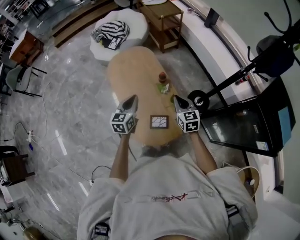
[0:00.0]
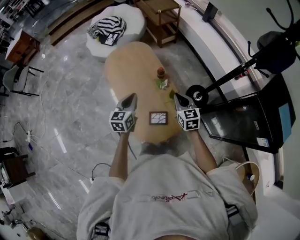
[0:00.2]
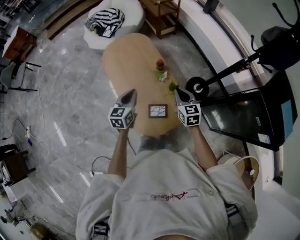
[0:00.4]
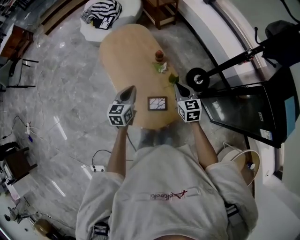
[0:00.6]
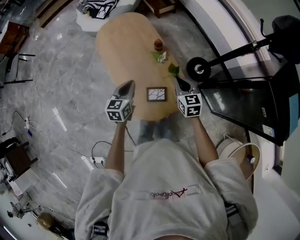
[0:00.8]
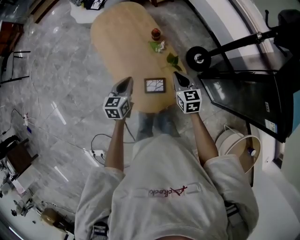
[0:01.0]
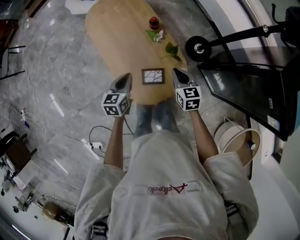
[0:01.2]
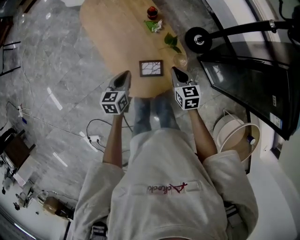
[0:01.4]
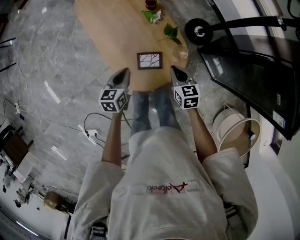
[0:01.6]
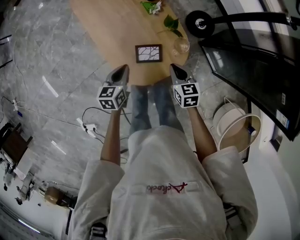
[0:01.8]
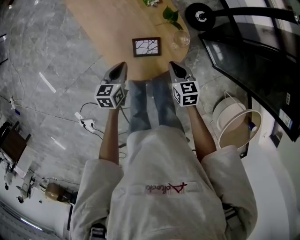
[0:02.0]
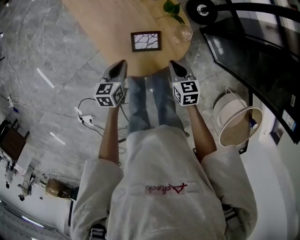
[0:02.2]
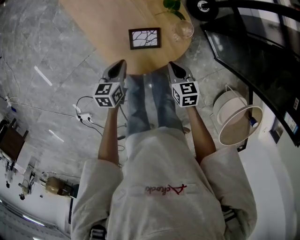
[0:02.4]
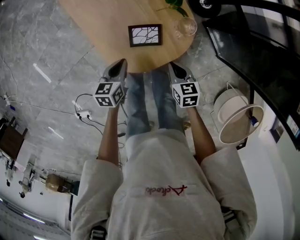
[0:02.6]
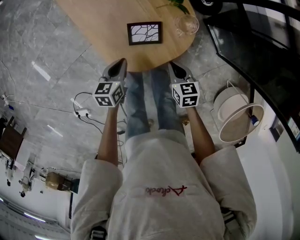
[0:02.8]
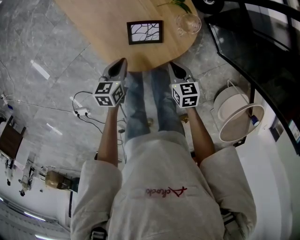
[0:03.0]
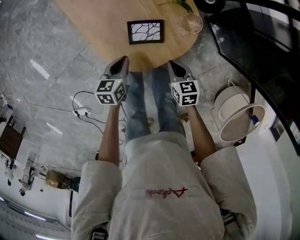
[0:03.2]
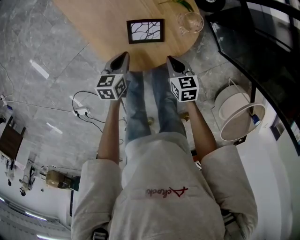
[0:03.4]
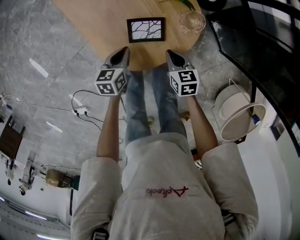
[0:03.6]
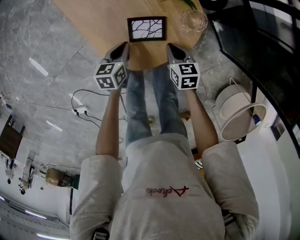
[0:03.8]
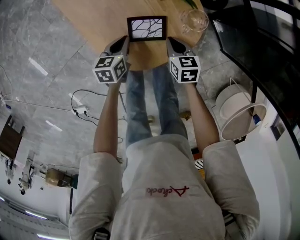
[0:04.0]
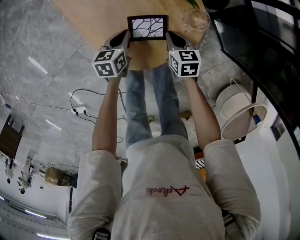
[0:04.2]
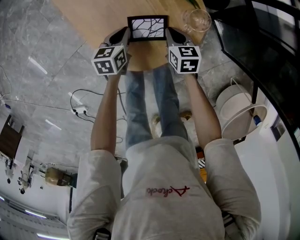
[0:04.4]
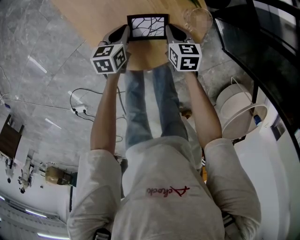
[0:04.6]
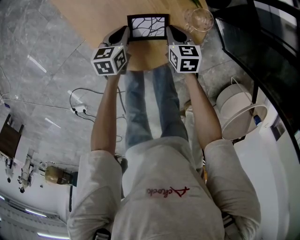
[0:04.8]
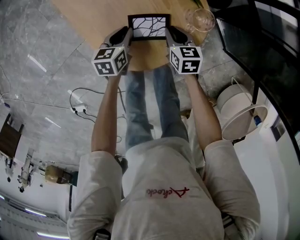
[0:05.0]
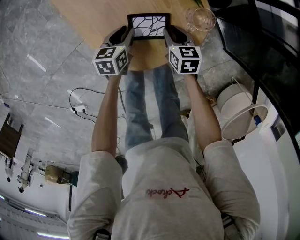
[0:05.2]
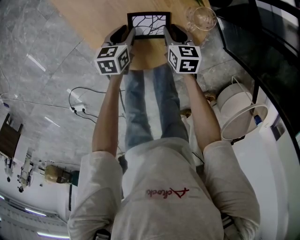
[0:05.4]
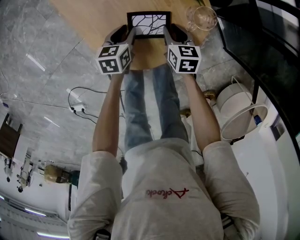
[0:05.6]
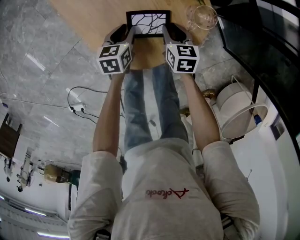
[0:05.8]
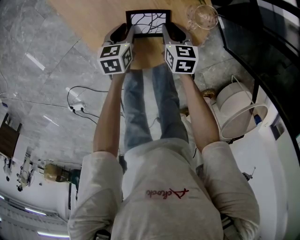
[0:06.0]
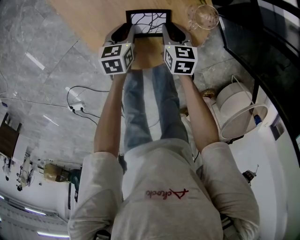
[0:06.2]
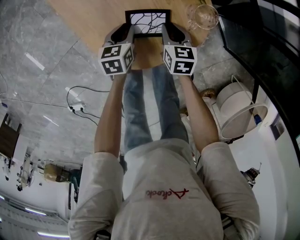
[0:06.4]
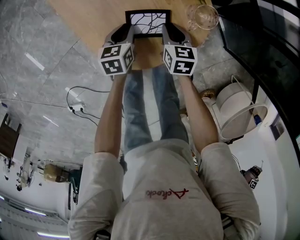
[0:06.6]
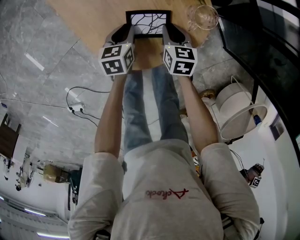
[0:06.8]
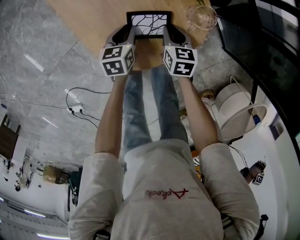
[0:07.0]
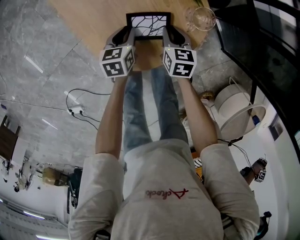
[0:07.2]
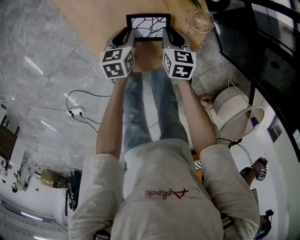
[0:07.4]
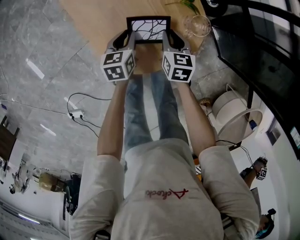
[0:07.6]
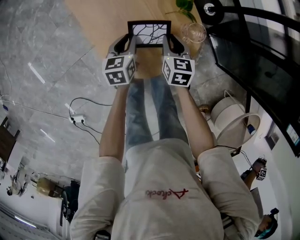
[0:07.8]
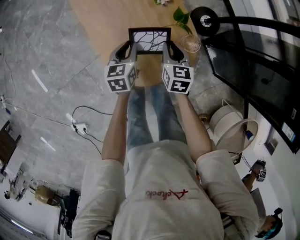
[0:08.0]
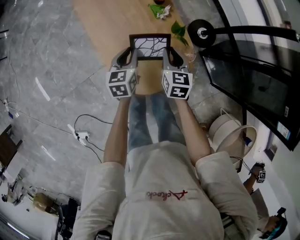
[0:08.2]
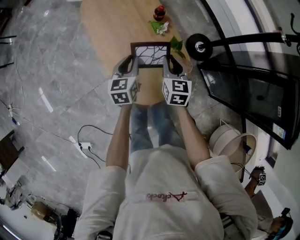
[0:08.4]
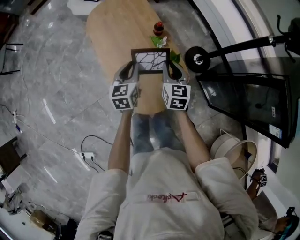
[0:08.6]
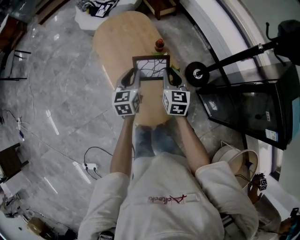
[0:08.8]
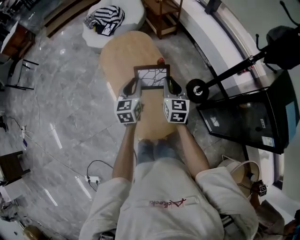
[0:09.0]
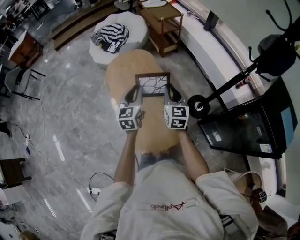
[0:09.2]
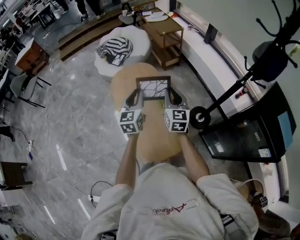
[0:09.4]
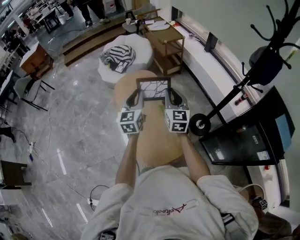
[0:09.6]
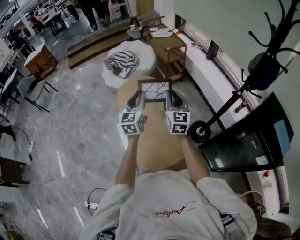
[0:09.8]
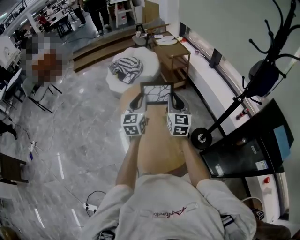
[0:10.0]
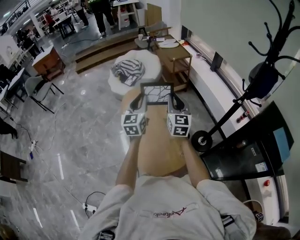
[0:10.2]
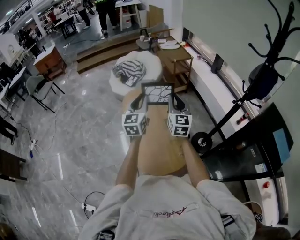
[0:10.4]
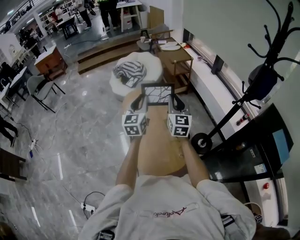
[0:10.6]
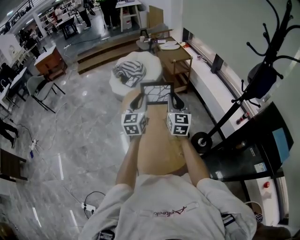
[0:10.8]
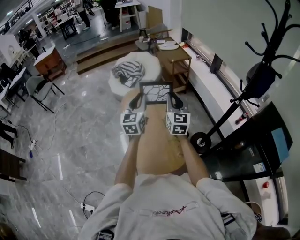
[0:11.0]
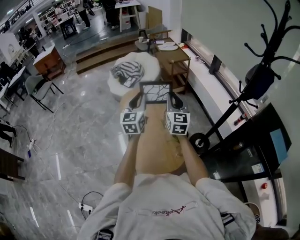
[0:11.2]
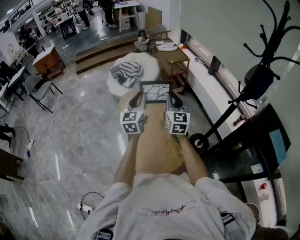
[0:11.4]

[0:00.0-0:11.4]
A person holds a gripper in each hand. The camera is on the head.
0:00.0 to 0:01.4: The grippers both shift downward by roughly 20 cm.
0:01.4 to 0:02.8: The left gripper is displaced downward by roughly 20 cm; the right gripper goes roughly 25 cm downward and backward.
0:02.8 to 0:04.2: The left gripper moves downward and forward, about 10 cm. Meanwhile the right gripper travels forward and downward by roughly 15 cm.
0:04.2 to 0:05.6: The left gripper opens up; the right gripper opens up.
0:05.6 to 0:07.2: The grippers make only small movements.
0:07.2 to 0:08.6: The grippers both shift upward by some 40 cm. The left gripper turns by roughly 30 degrees. Meanwhile the right gripper turns by about 30 degrees.
0:08.6 to 0:10.0: The grippers both shift upward by roughly 35 cm. The right gripper changes its angle by approximately 30 degrees. The left gripper swivels approximately 30 degrees.
0:10.0 to 0:11.4: The grippers move only a little.

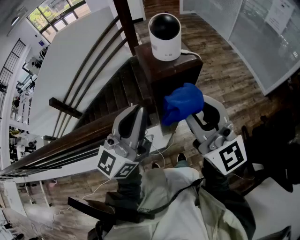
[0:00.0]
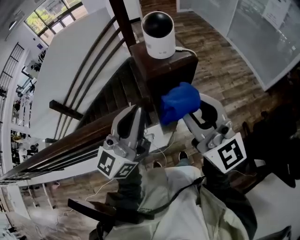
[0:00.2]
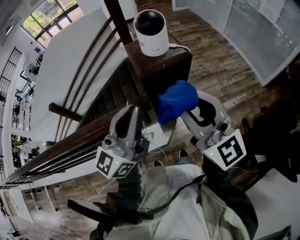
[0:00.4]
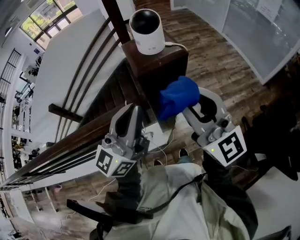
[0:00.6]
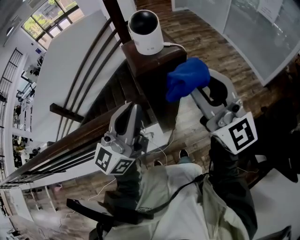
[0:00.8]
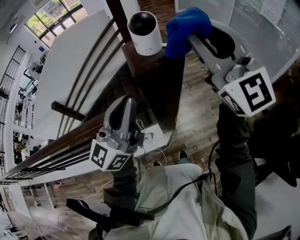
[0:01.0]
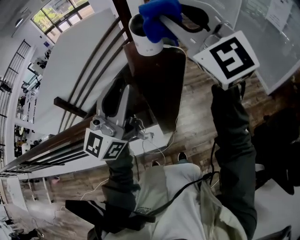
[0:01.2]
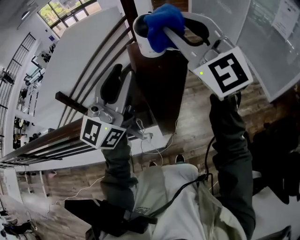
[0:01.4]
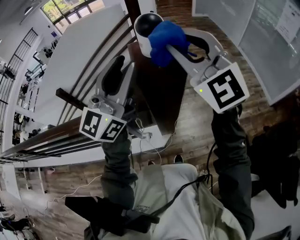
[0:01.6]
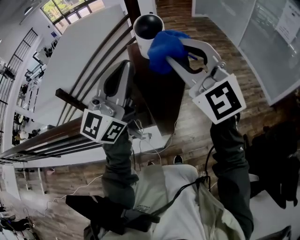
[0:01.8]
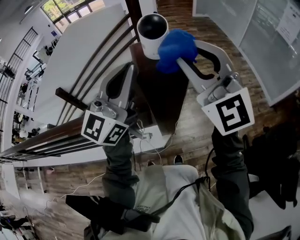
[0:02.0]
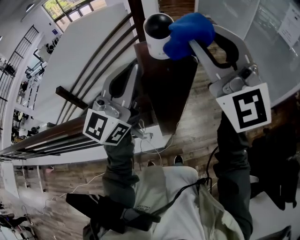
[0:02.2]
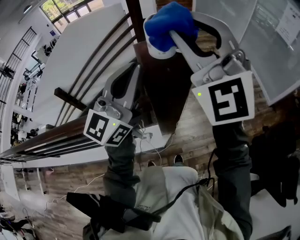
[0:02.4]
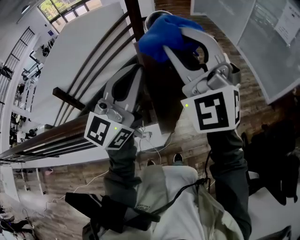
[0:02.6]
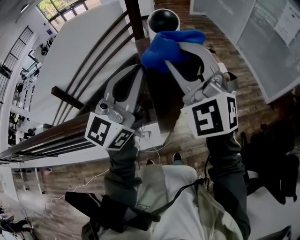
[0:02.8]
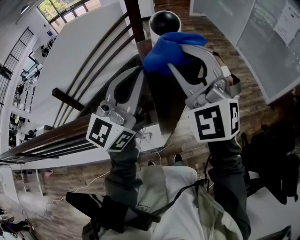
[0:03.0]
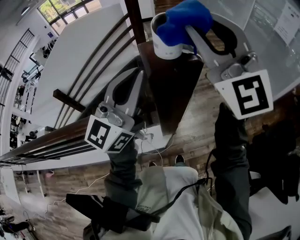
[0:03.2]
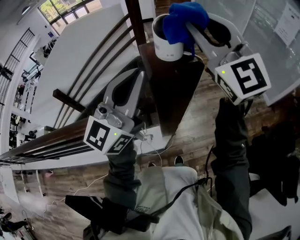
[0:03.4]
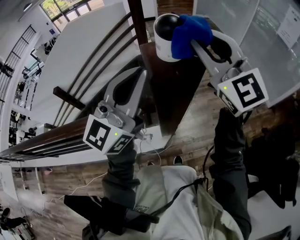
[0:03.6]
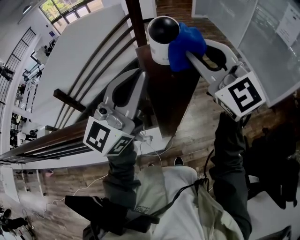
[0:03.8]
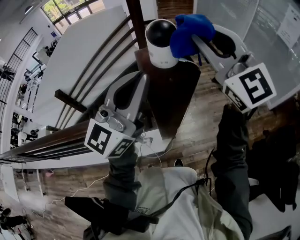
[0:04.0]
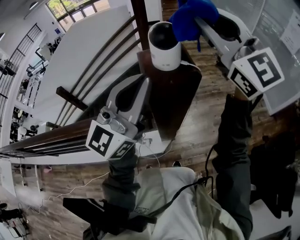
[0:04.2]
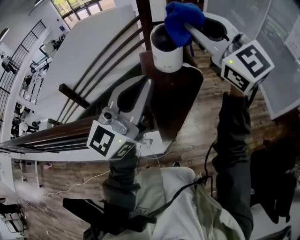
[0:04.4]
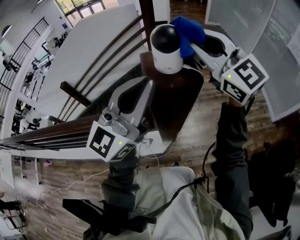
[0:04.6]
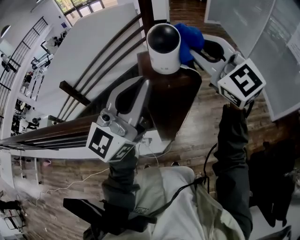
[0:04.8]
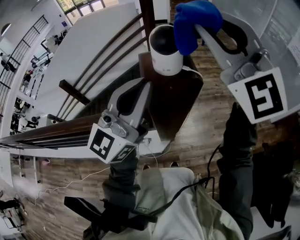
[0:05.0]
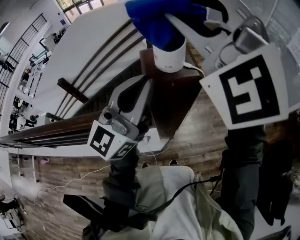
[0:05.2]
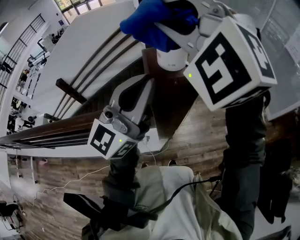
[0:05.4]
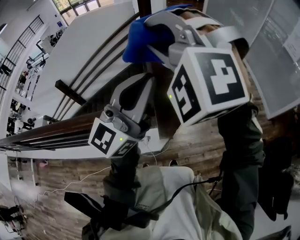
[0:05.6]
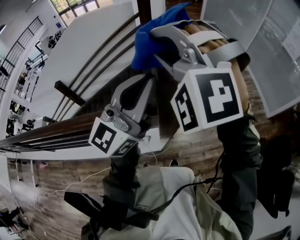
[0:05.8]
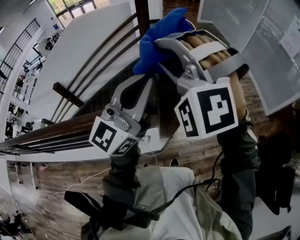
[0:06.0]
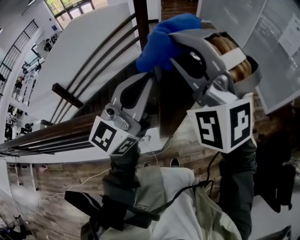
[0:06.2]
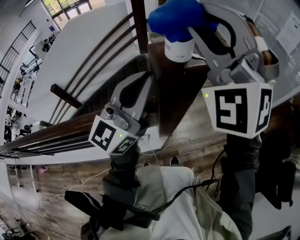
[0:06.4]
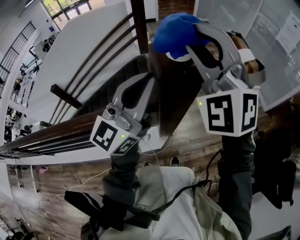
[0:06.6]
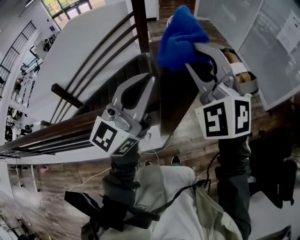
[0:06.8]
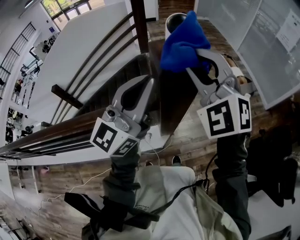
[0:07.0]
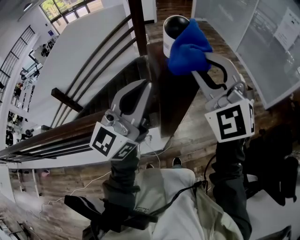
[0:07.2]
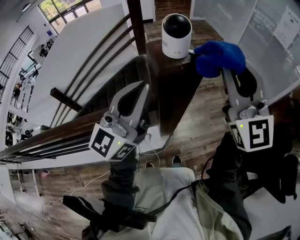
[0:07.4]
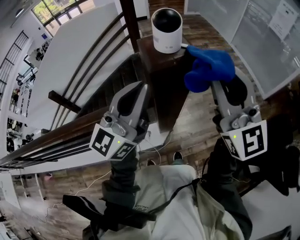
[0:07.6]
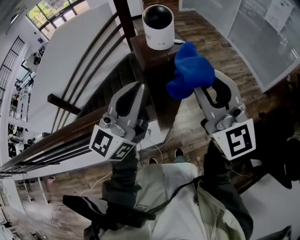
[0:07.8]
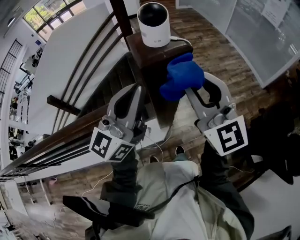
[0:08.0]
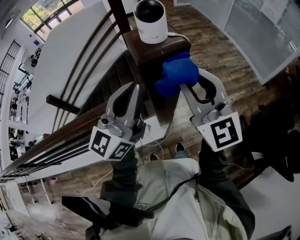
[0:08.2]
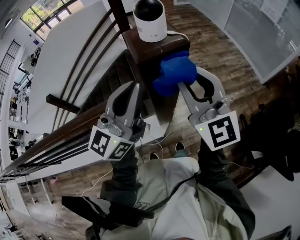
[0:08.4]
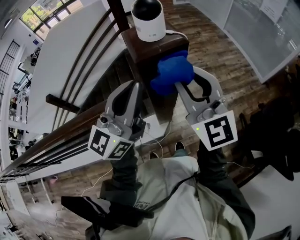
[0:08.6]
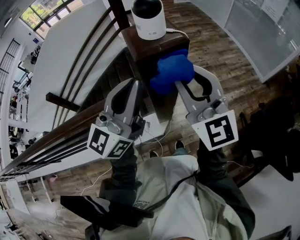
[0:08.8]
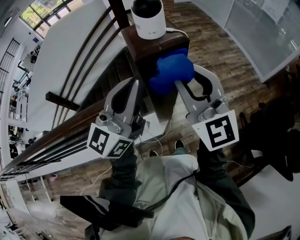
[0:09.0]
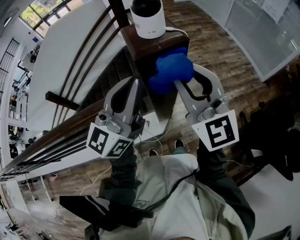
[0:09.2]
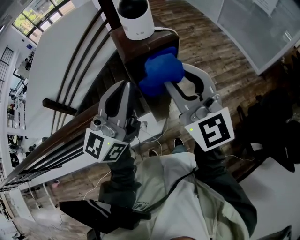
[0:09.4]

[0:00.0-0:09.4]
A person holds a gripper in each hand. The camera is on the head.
0:00.0 to 0:01.6: The left gripper travels upward and forward by about 10 cm, and opens up; the right gripper shifts about 15 cm forward and upward, and rotates roughly 30 degrees.
0:01.6 to 0:03.2: The left gripper closes, while the right gripper goes up and down, approximately 10 cm each way, reversing 2 times.
0:03.2 to 0:04.8: The right gripper swings up and down, roughly 10 cm each way, with 2 reversals, and rotates approximately 30 degrees.
0:04.8 to 0:06.2: The right gripper heads backward and to the left, covering roughly 15 cm, and rolls counterclockwise, seen from behind, by roughly 60 degrees.
0:06.2 to 0:07.8: The right gripper heads to the right and downward, covering approximately 15 cm, and rolls clockwise, seen from behind, by about 60 degrees.
0:07.8 to 0:09.4: The grippers move only a little.

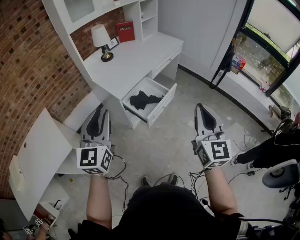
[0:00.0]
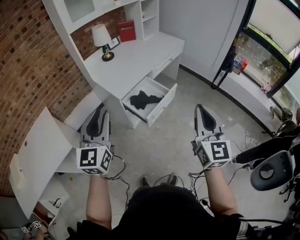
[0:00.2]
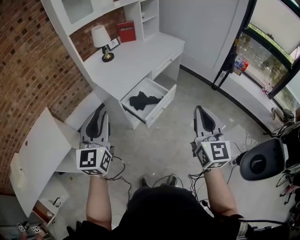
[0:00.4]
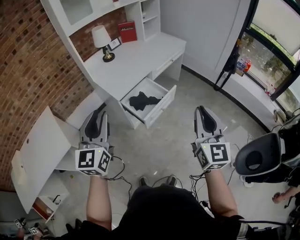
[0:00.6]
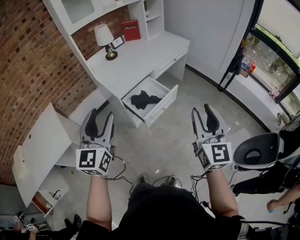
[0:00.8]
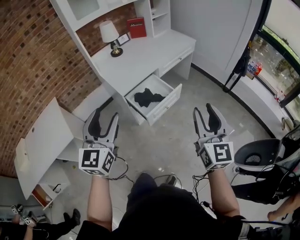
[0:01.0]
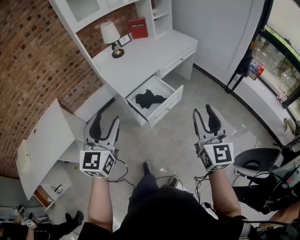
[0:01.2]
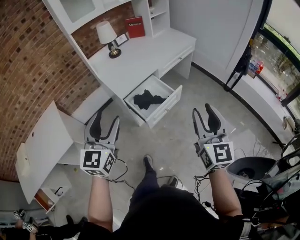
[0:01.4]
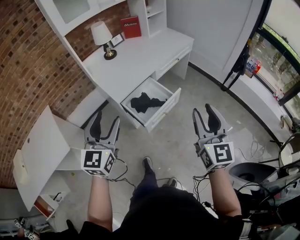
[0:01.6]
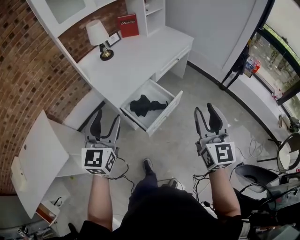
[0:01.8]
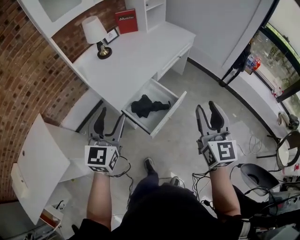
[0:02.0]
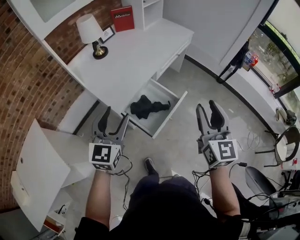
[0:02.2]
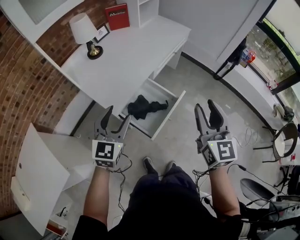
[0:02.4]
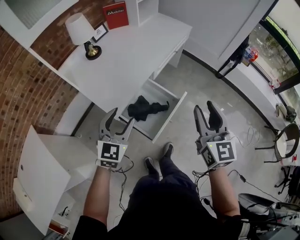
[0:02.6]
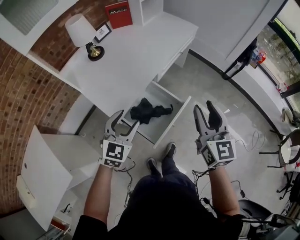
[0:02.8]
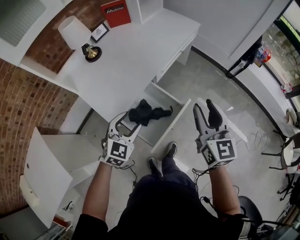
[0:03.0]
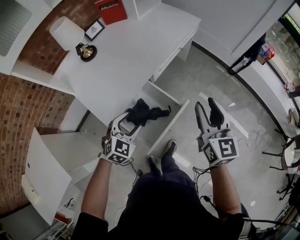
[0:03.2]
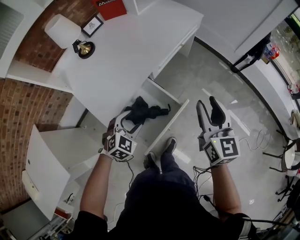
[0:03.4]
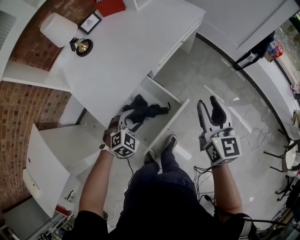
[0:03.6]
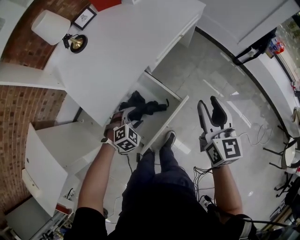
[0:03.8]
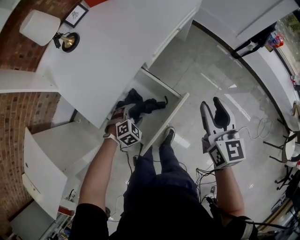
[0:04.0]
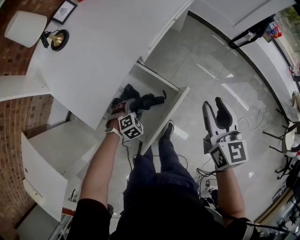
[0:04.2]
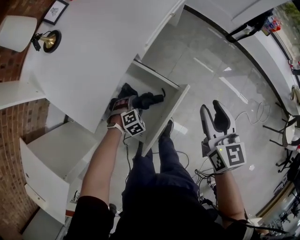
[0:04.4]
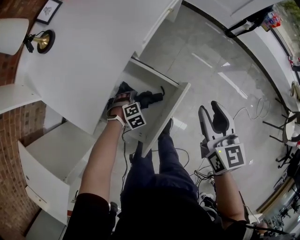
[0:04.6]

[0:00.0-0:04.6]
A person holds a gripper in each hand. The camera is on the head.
0:00.0 to 0:01.6: The left gripper heads to the right and forward, covering some 10 cm, and opens; the right gripper is displaced forward and to the right by about 15 cm, and opens up.
0:01.6 to 0:03.0: The right gripper goes about 30 cm forward; the left gripper is displaced forward and downward by some 35 cm, and swivels roughly 40 degrees.
0:03.0 to 0:04.6: The right gripper is displaced downward by about 20 cm, and changes its angle by some 20 degrees, while the left gripper shifts some 40 cm downward, and points its fingers roughly 50 degrees further downward.
